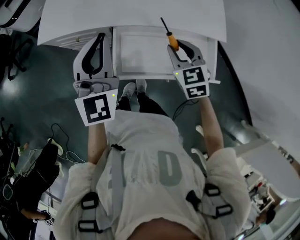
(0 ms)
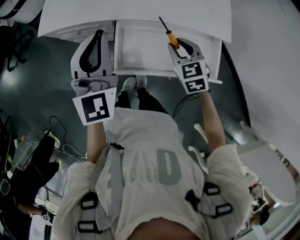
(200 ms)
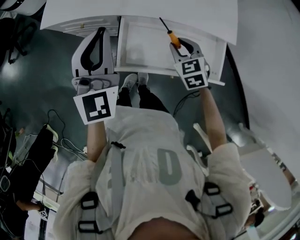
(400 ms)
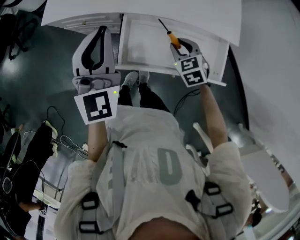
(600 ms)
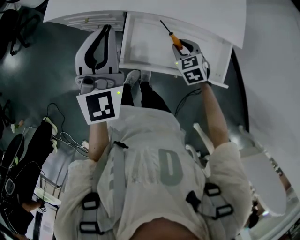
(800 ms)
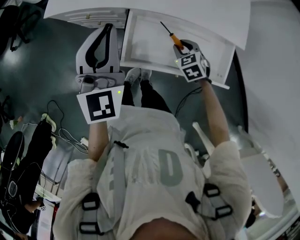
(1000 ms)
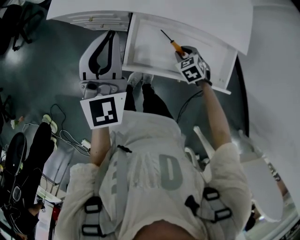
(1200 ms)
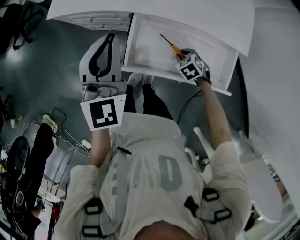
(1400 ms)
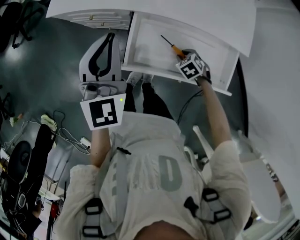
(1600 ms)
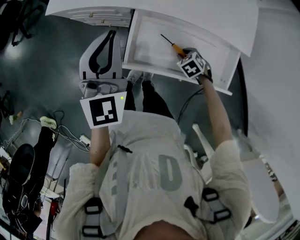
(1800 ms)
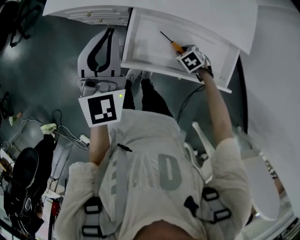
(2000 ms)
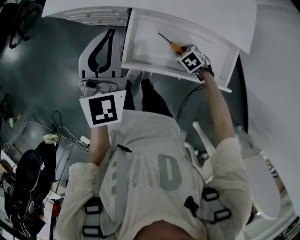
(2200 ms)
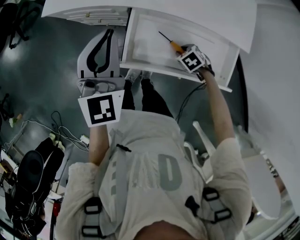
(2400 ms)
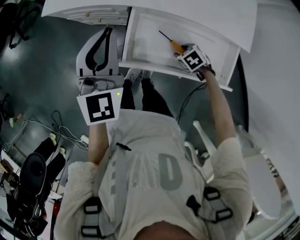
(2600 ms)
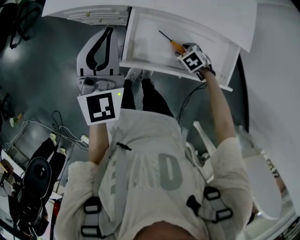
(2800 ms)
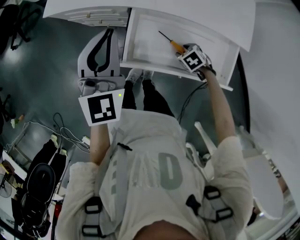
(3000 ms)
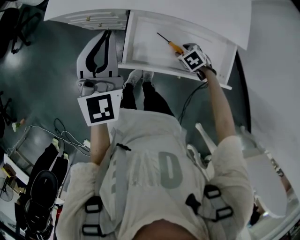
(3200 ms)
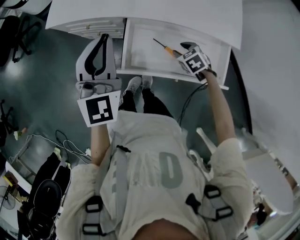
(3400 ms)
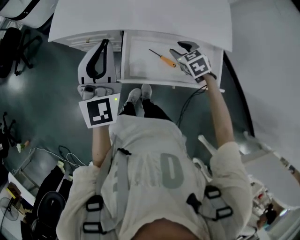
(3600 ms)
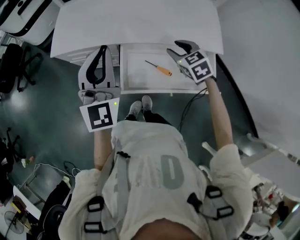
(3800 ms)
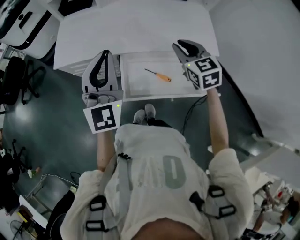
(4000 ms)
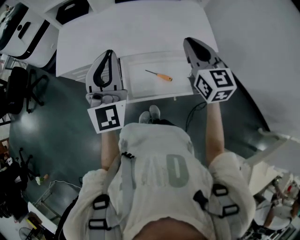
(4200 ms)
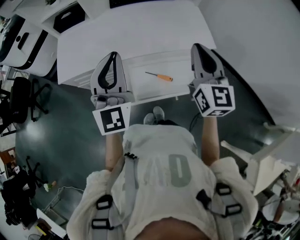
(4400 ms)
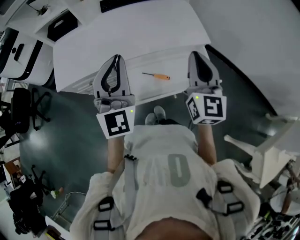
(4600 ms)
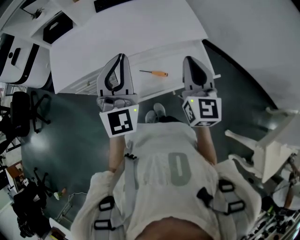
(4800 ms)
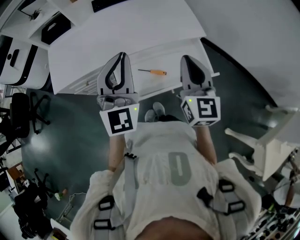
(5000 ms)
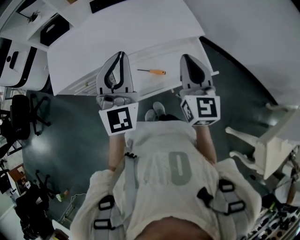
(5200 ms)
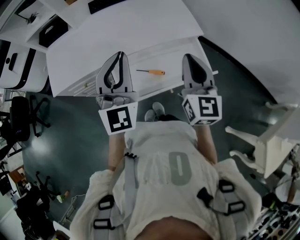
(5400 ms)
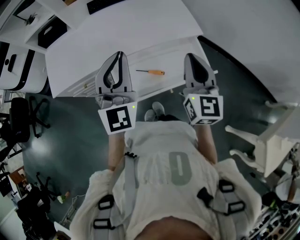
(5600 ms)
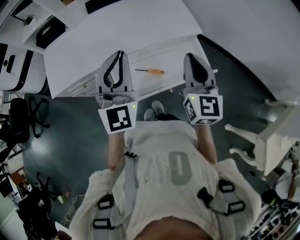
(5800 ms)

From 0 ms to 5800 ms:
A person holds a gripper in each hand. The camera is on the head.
From 0 ms to 1400 ms: The left gripper ends up about 5 cm from where it was. Meanwhile the right gripper moves downward, approximately 25 cm, and angles its fingers downward, by about 40 degrees.
From 1400 ms to 2800 ms: There are only small adjustments of the grippers.
From 2800 ms to 4400 ms: The right gripper is displaced upward by some 50 cm, tips its fingers upward by roughly 80 degrees, and closes, while the left gripper travels upward by some 15 cm, and swivels roughly 20 degrees.
From 4400 ms to 5800 ms: The left gripper travels to the right by about 5 cm. Meanwhile the right gripper changes place by about 5 cm.

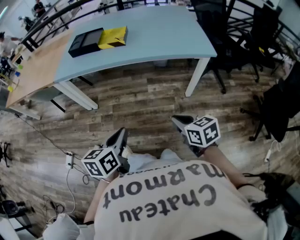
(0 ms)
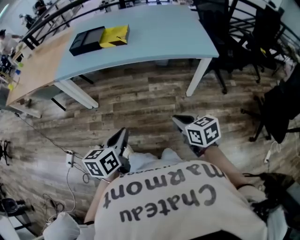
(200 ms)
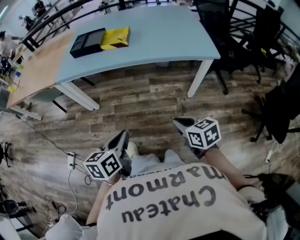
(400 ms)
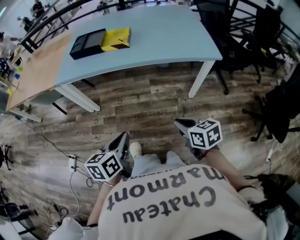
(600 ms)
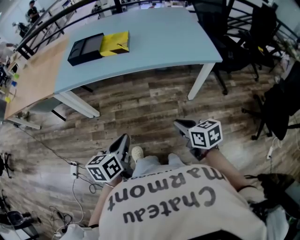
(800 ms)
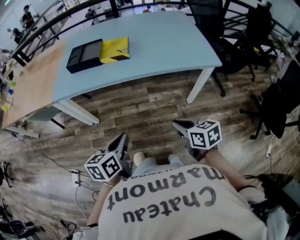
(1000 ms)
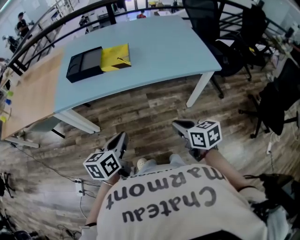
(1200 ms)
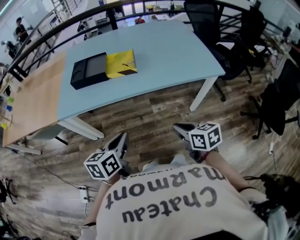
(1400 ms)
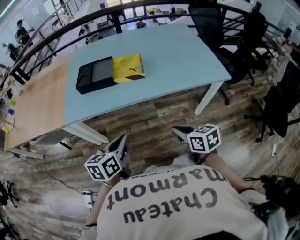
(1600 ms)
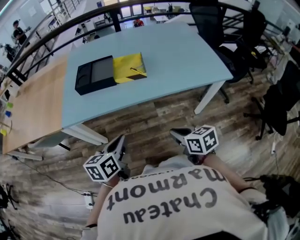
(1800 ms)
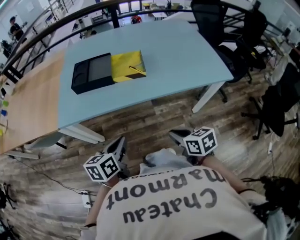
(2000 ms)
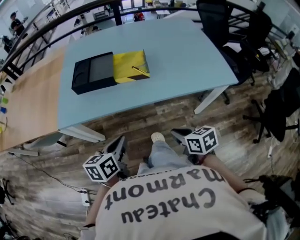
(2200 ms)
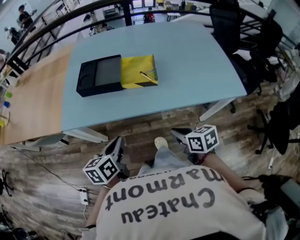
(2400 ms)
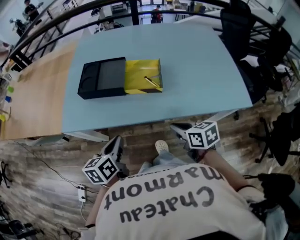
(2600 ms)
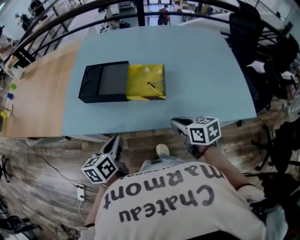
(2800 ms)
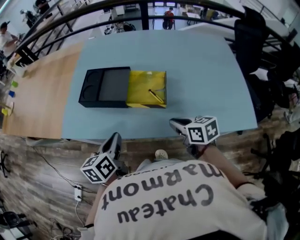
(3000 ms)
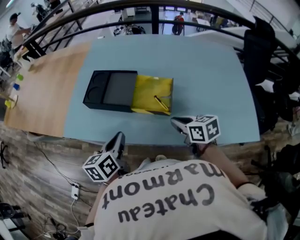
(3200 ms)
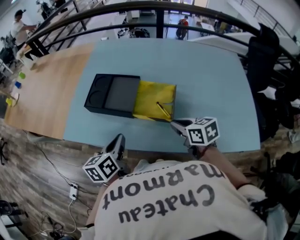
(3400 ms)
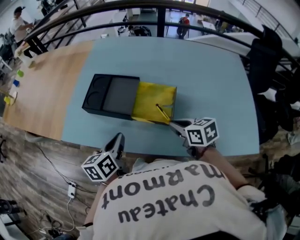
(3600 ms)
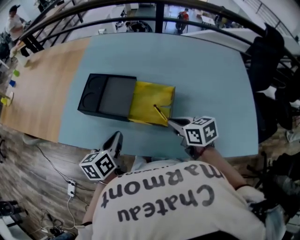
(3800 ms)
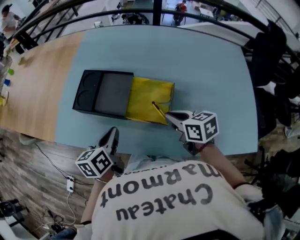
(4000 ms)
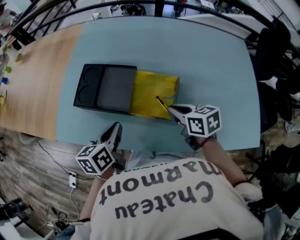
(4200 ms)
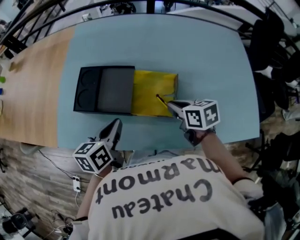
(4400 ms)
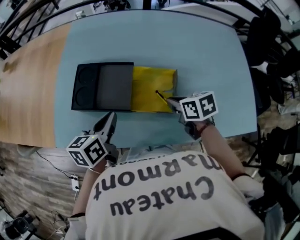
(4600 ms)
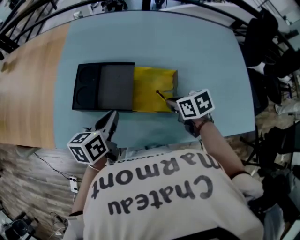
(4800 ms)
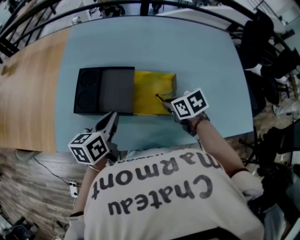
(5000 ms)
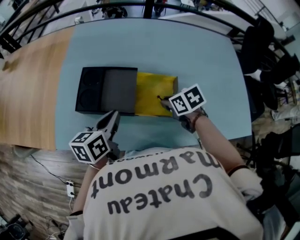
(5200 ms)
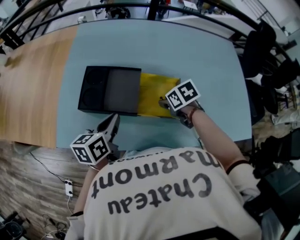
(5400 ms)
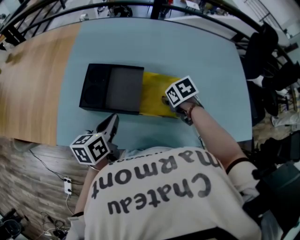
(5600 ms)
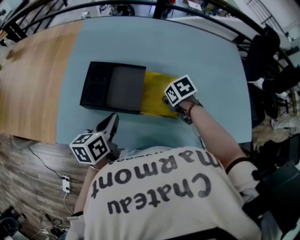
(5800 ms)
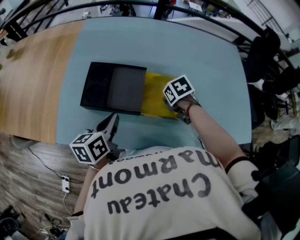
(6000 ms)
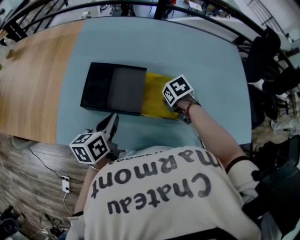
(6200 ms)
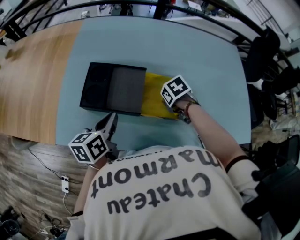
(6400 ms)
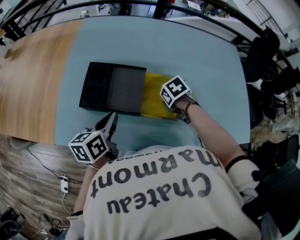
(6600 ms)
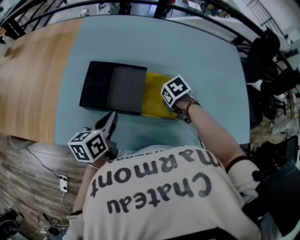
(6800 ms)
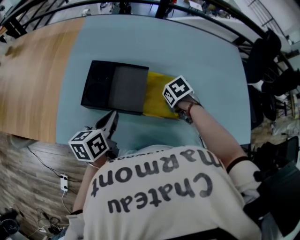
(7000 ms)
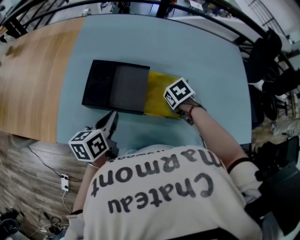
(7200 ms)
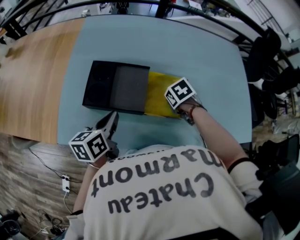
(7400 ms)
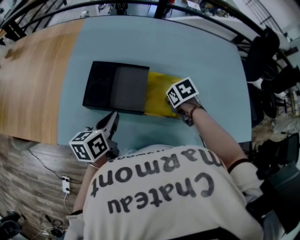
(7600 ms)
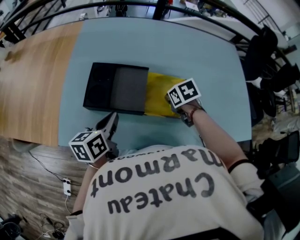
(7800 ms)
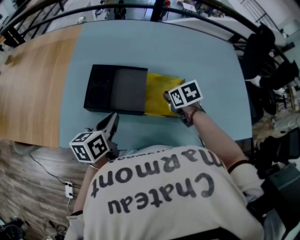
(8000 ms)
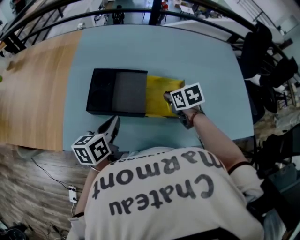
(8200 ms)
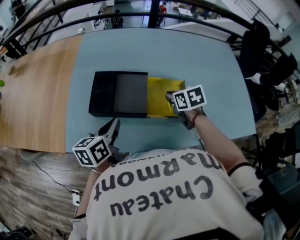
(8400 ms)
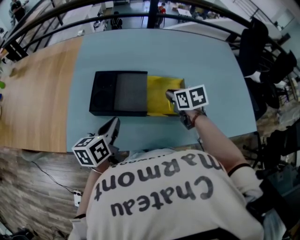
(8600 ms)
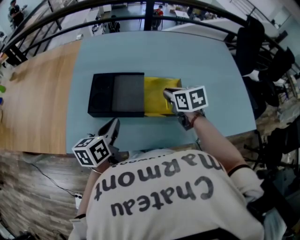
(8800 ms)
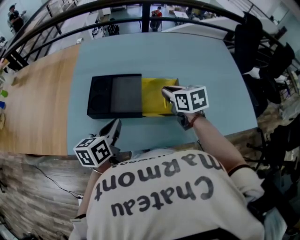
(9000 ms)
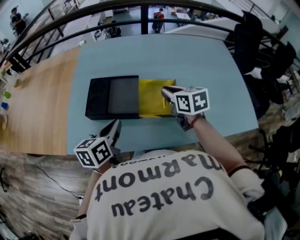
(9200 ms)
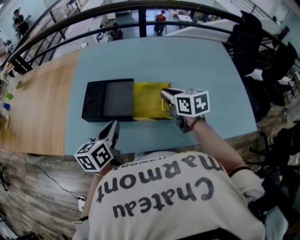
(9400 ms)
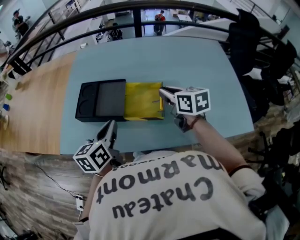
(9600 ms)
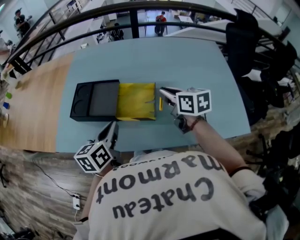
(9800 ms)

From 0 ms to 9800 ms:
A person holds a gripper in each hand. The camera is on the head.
From 0 ms to 1400 ms: The grippers both shift forward and to the left by roughly 20 cm.
From 1400 ms to 2800 ms: The grippers both shift forward by some 25 cm.
From 2800 ms to 4200 ms: The right gripper shifts some 15 cm forward, while the left gripper travels forward and to the right by some 15 cm.
From 4200 ms to 5600 ms: The right gripper heads downward and forward, covering roughly 10 cm, angles its fingers downward, by approximately 30 degrees, and opens. The left gripper moves approximately 5 cm.
From 5600 ms to 7000 ms: There are only small adjustments of the grippers.
From 7000 ms to 8400 ms: The right gripper goes approximately 10 cm upward, and rotates approximately 30 degrees.
From 8400 ms to 9800 ms: The left gripper is displaced to the right by about 15 cm, while the right gripper heads to the right and upward, covering roughly 15 cm, and turns by approximately 30 degrees.

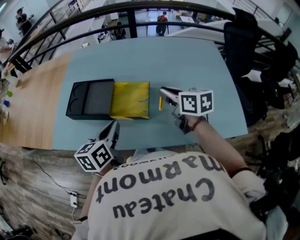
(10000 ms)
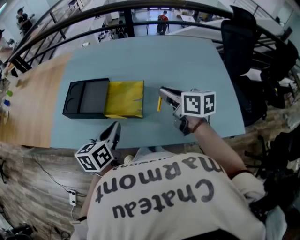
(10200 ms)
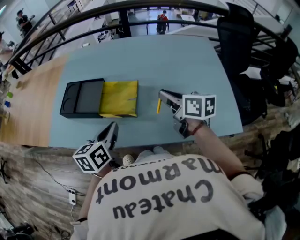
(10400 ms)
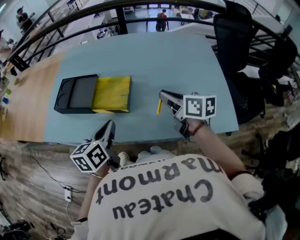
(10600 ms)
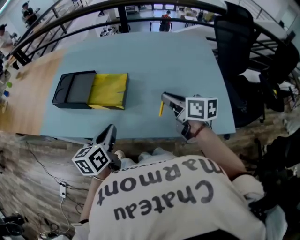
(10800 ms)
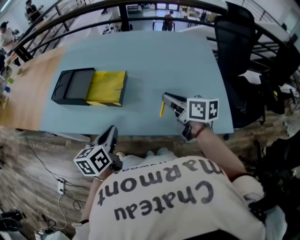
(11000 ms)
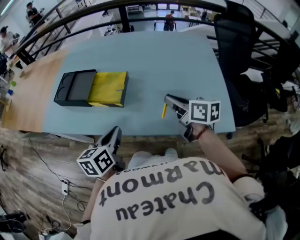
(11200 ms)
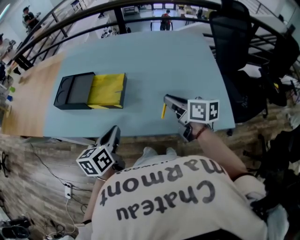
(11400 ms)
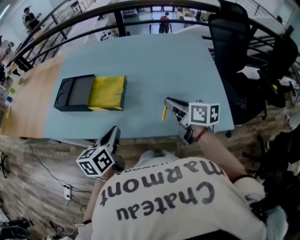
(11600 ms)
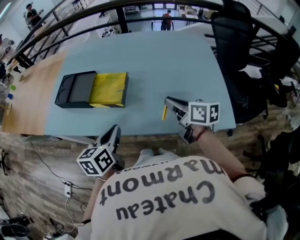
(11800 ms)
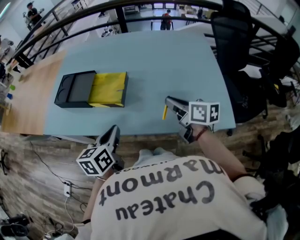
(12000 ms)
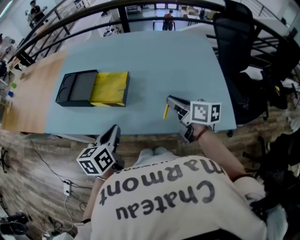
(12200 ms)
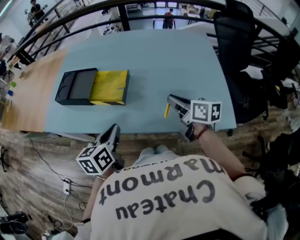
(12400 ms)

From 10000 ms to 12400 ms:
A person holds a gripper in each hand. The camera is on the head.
From 10000 ms to 11200 ms: Both grippers move to the right and backward, approximately 15 cm.
From 11200 ms to 12400 ms: The grippers move only a little.

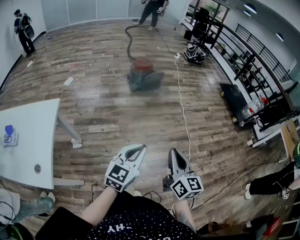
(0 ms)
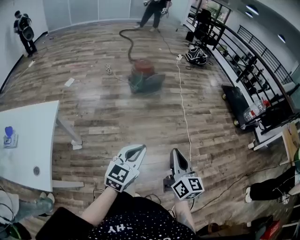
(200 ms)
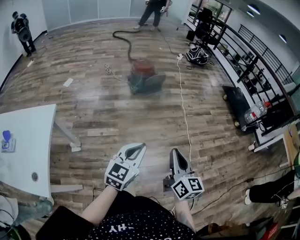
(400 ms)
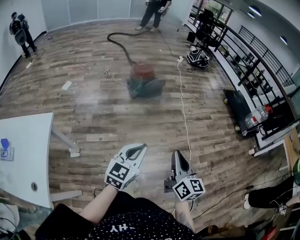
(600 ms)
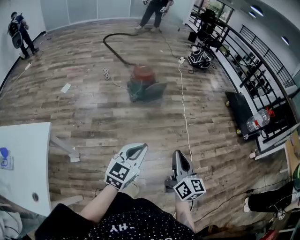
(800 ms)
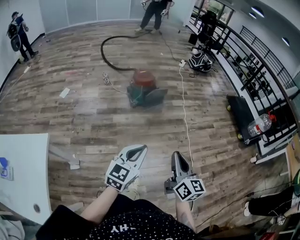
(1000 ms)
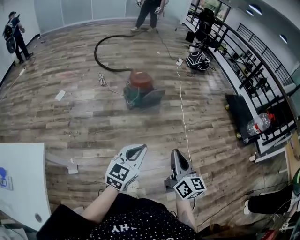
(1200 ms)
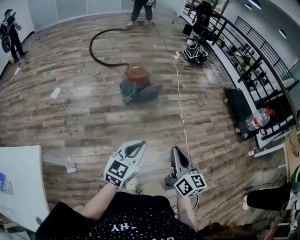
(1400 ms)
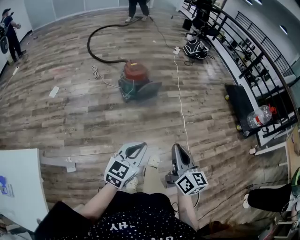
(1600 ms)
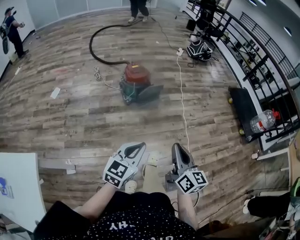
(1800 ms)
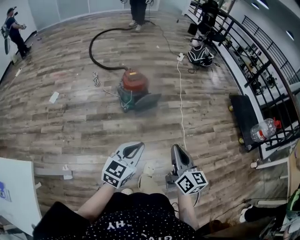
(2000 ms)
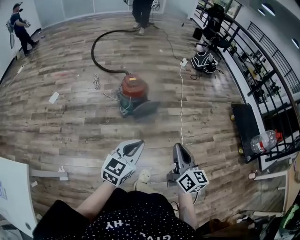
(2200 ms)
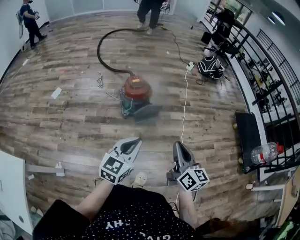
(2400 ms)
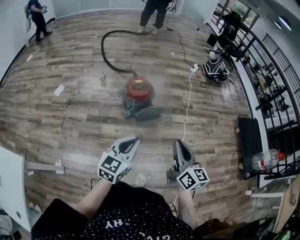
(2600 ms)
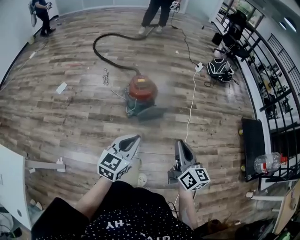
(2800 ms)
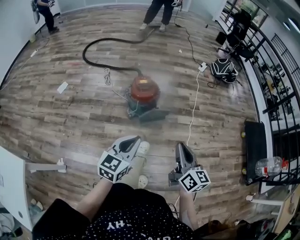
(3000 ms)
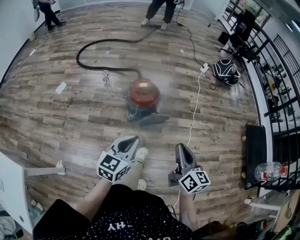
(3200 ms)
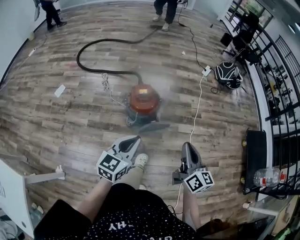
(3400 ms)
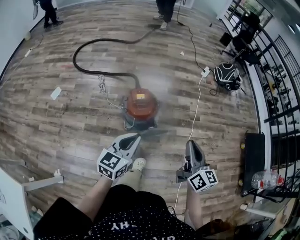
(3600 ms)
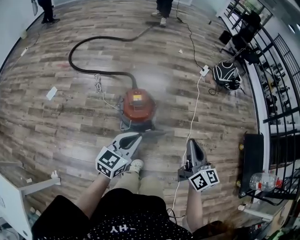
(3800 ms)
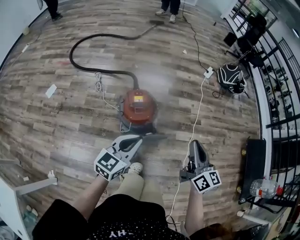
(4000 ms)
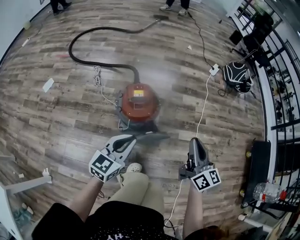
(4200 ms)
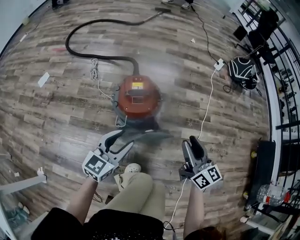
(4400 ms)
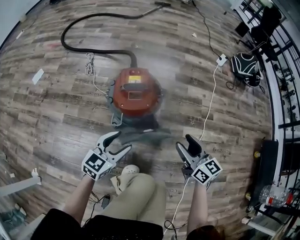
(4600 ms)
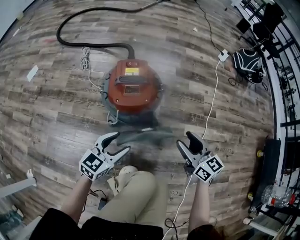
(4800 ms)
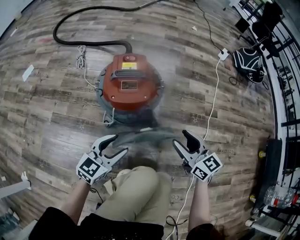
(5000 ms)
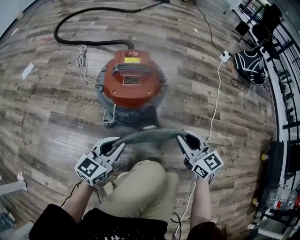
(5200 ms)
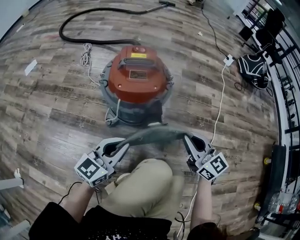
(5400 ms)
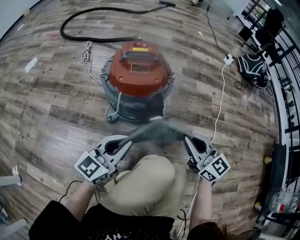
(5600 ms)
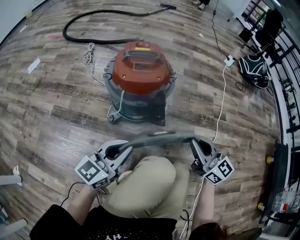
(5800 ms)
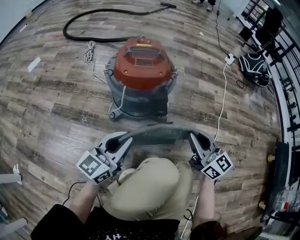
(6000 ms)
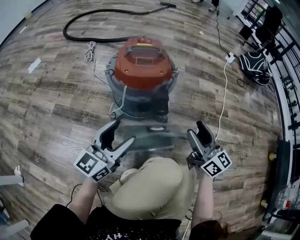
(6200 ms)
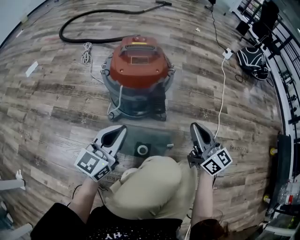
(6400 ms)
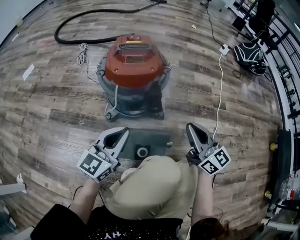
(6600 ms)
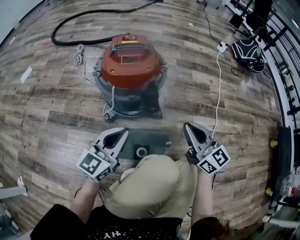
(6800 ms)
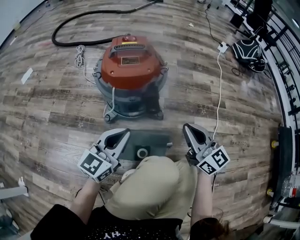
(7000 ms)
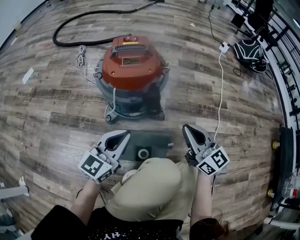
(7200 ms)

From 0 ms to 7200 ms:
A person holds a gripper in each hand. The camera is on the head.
From 0 ms to 1400 ms: Both grippers travel together forward, roughly 35 cm.
From 1400 ms to 2800 ms: The two grippers go roughly 35 cm forward.
From 2800 ms to 4400 ms: Both grippers move forward and downward, roughly 40 cm. The right gripper opens its fingers. The left gripper opens its fingers.
From 4400 ms to 5800 ms: The grippers both shift downward by approximately 25 cm. The left gripper closes, while the right gripper changes its angle by about 20 degrees, and closes.
From 5800 ms to 7200 ms: The left gripper opens and closes again, while the right gripper opens and closes again.
